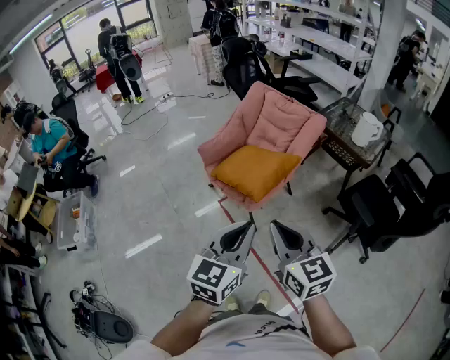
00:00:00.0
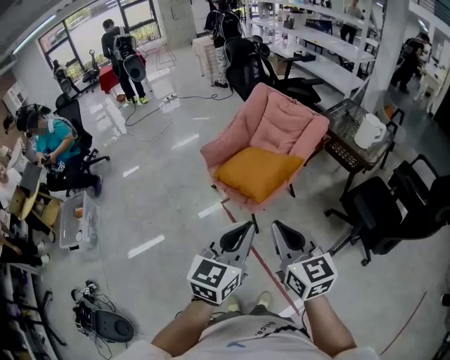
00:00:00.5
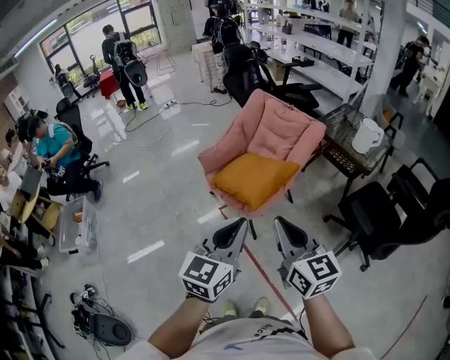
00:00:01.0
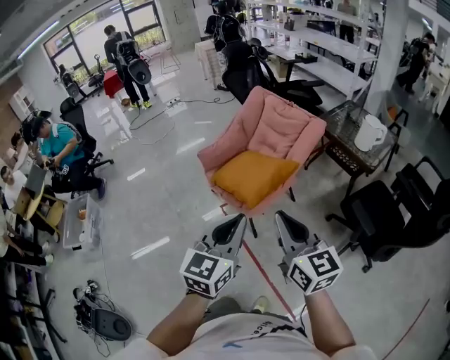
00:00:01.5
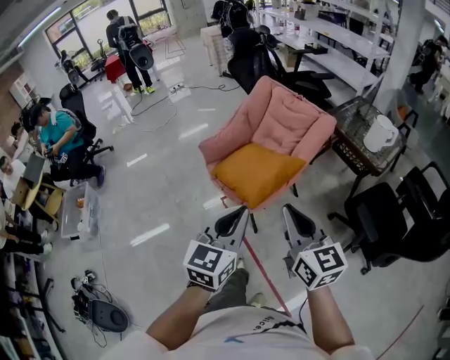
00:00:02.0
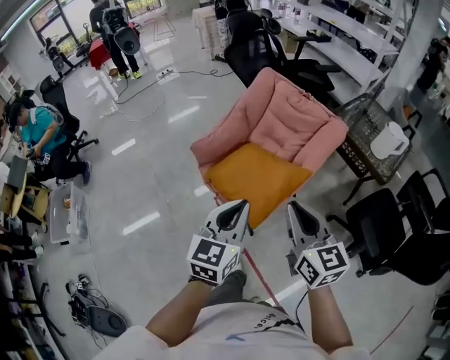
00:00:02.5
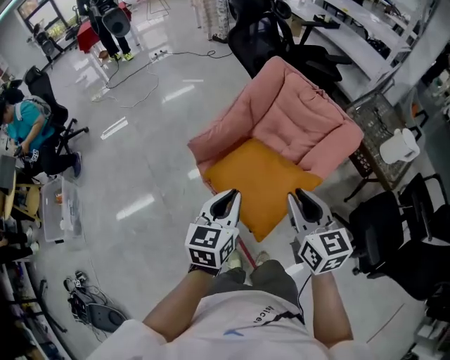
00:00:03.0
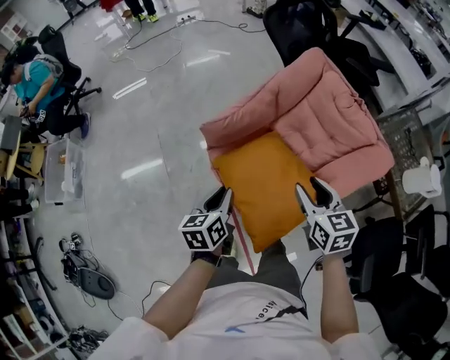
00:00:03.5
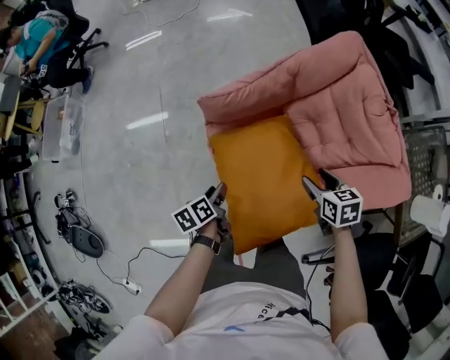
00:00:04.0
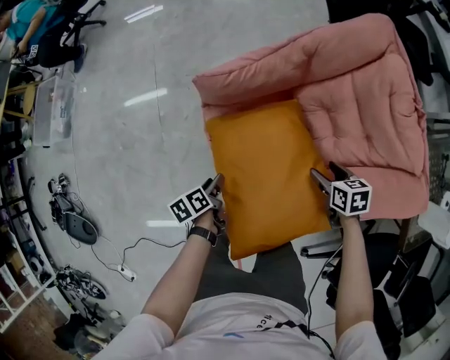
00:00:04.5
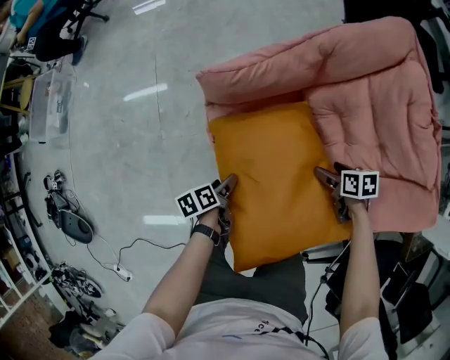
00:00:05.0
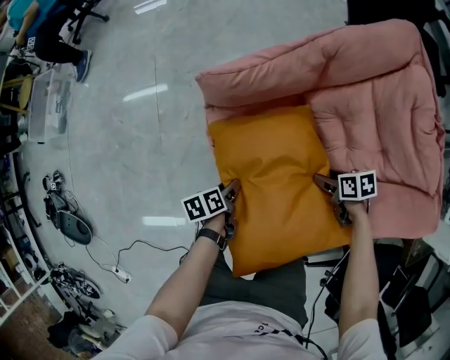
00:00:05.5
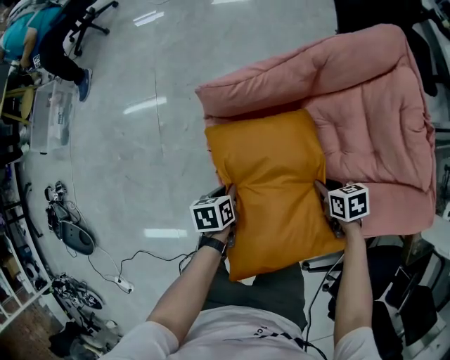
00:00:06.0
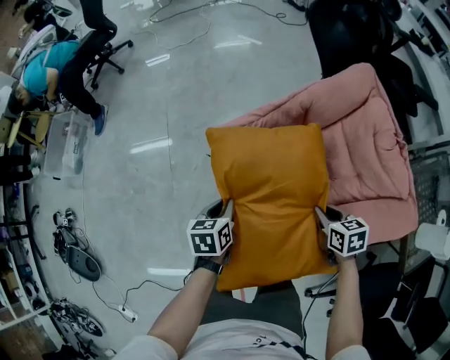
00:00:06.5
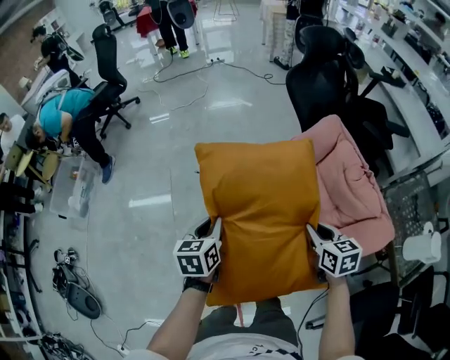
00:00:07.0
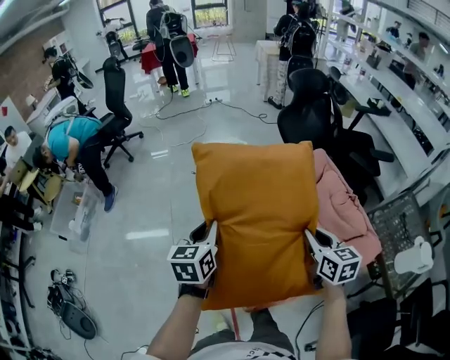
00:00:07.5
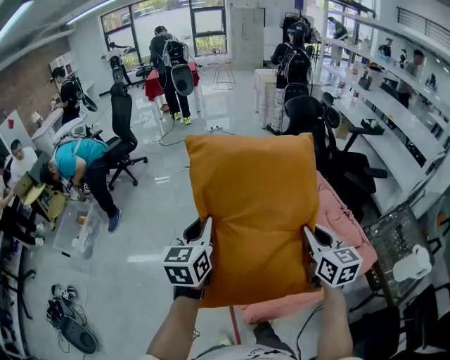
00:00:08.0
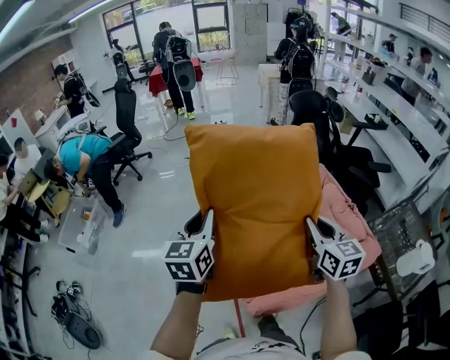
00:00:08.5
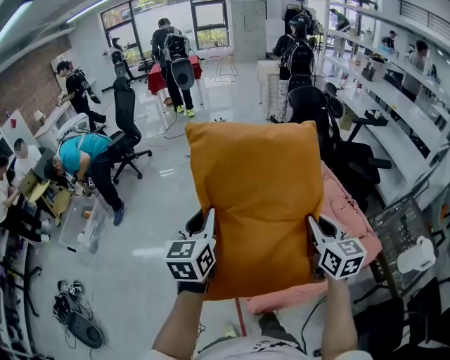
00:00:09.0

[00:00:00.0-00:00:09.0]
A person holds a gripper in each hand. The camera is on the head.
00:00:00.0 to 00:00:02.0: The right gripper goes some 15 cm forward and to the right. Meanwhile the left gripper shifts about 10 cm forward.
00:00:02.0 to 00:00:04.5: The two grippers travel together, roughly 50 cm. The right gripper tips its fingers downward by roughly 60 degrees, and opens, while the left gripper shifts roughly 50 cm downward, rolls counterclockwise, seen from behind, by roughly 80 degrees, and opens its fingers.
00:00:04.5 to 00:00:07.0: Both grippers travel together upward, about 30 cm. The left gripper twists some 40 degrees clockwise, seen from behind, and closes its fingers, while the right gripper changes its angle by some 20 degrees, and closes up.
00:00:07.0 to 00:00:09.0: Both grippers move upward, roughly 25 cm. The right gripper changes its angle by about 30 degrees; the left gripper changes its angle by approximately 30 degrees.

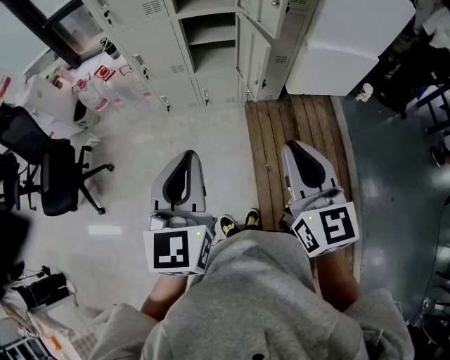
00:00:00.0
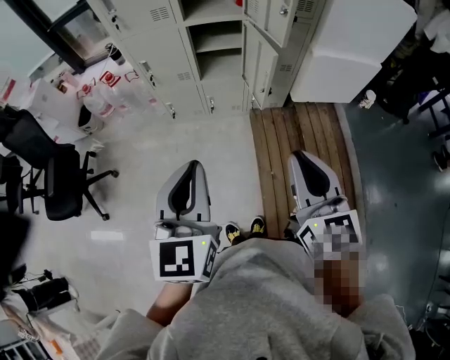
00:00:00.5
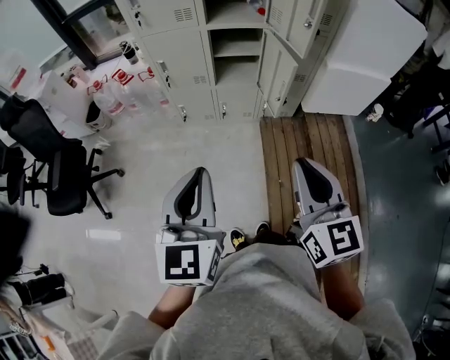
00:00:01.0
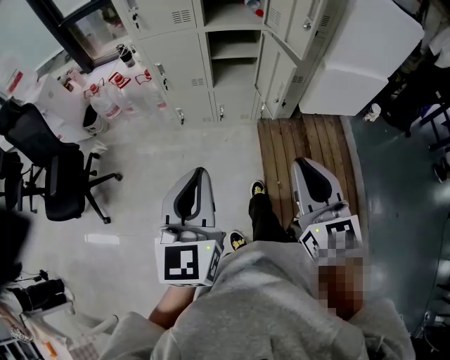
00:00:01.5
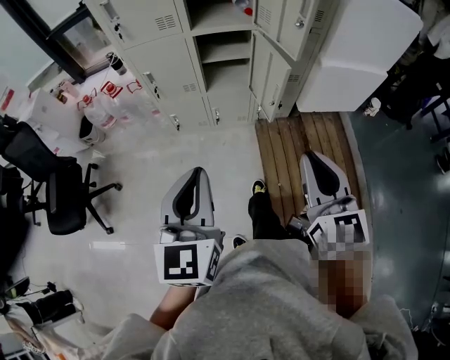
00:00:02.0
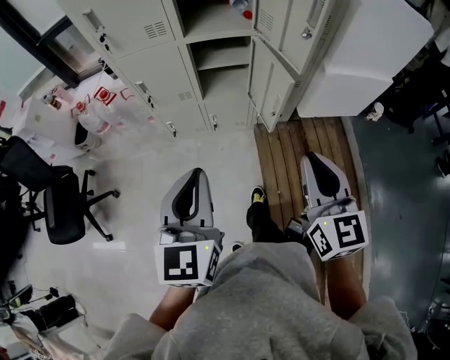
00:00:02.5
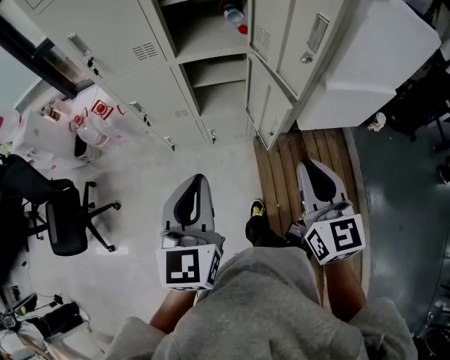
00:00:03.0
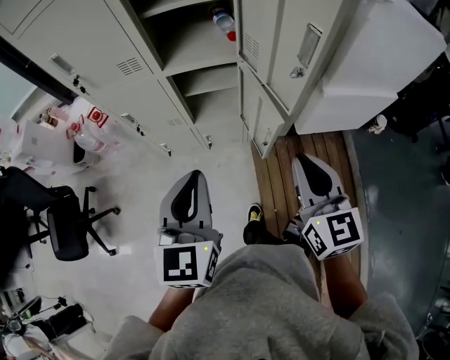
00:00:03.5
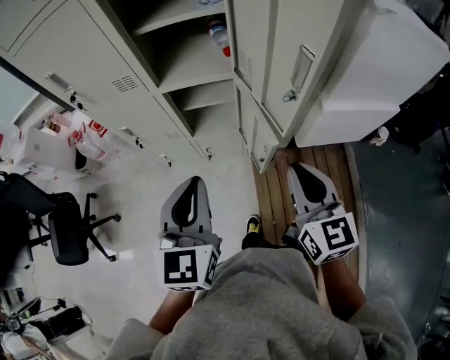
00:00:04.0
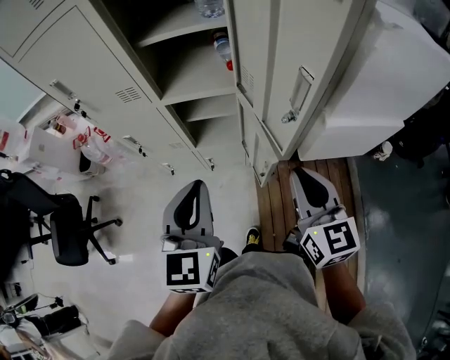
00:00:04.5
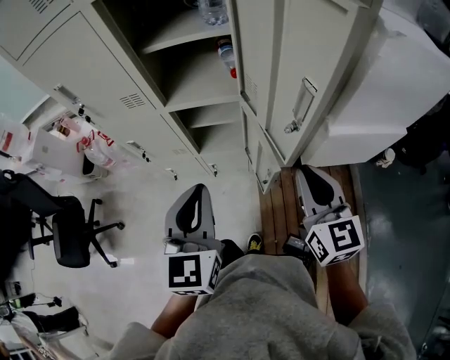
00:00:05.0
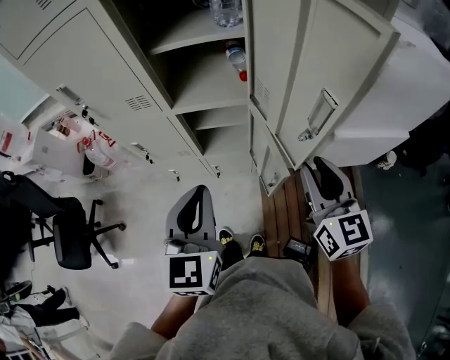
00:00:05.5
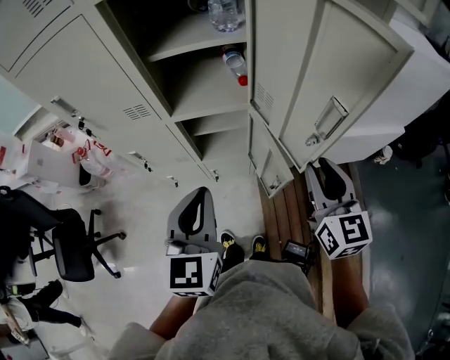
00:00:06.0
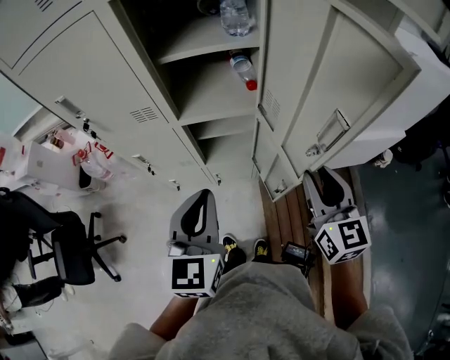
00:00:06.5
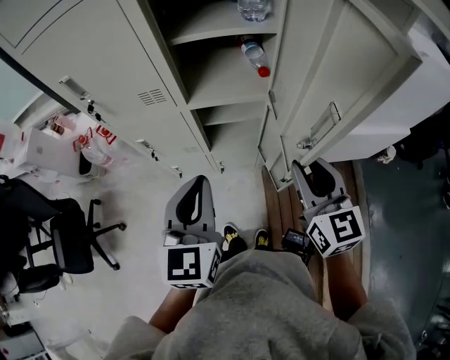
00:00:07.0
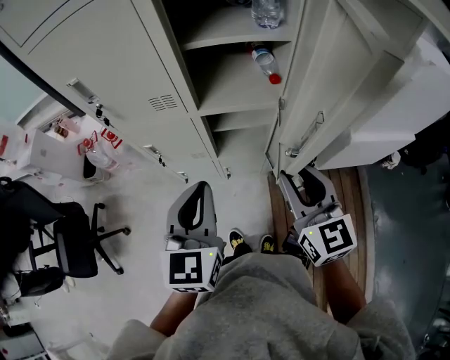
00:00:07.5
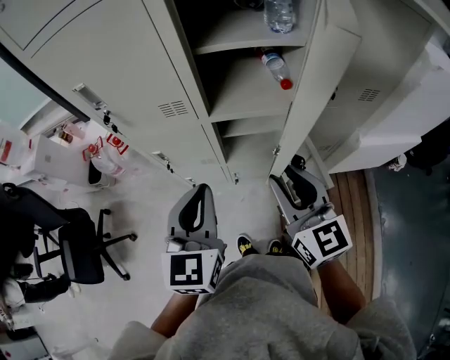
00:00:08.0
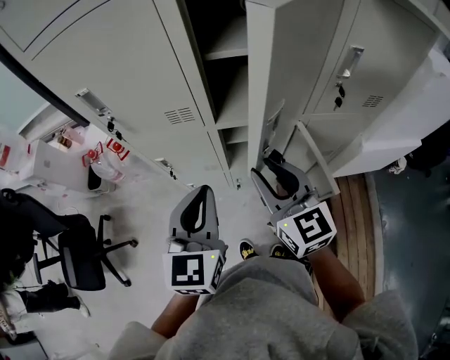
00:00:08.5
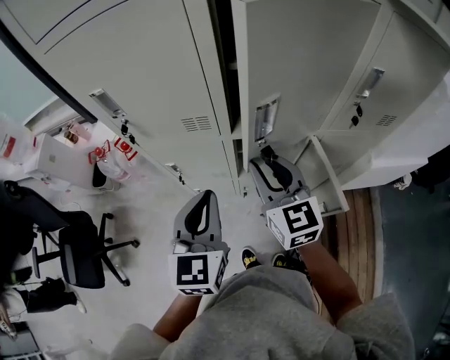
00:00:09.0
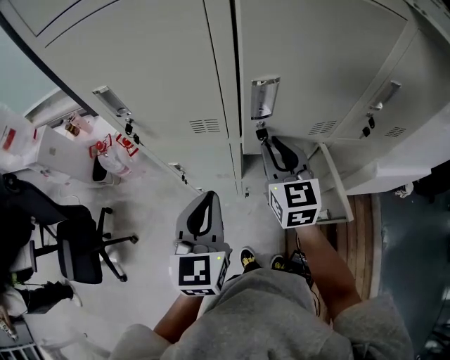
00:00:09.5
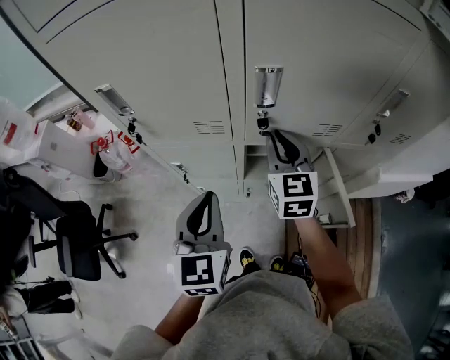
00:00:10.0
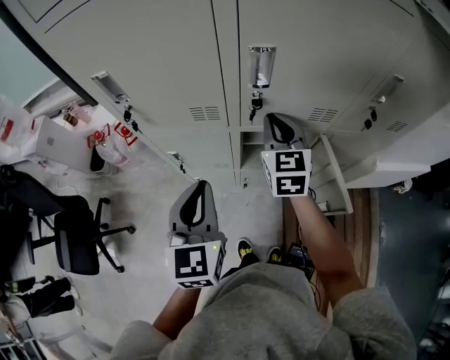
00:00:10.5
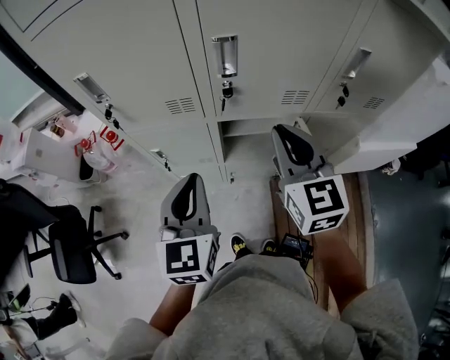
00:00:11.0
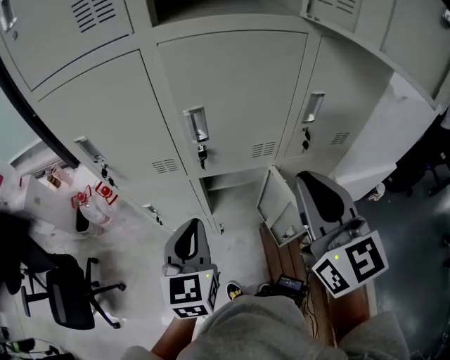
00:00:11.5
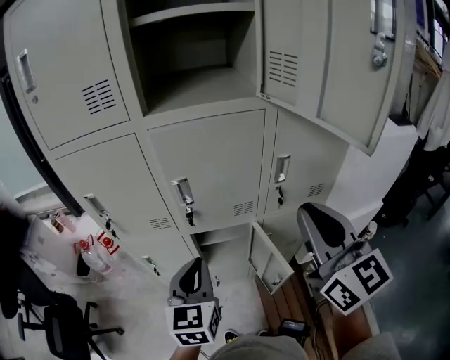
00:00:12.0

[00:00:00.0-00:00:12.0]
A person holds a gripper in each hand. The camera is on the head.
00:00:00.0 to 00:00:02.0: The right gripper shifts about 5 cm forward; the left gripper is displaced forward and to the left by about 10 cm.
00:00:02.0 to 00:00:04.0: Both grippers move forward, approximately 25 cm.
00:00:04.0 to 00:00:06.0: The grippers both shift forward by some 10 cm.
00:00:06.0 to 00:00:08.0: The right gripper moves to the left, about 20 cm; the left gripper is displaced to the left by about 10 cm.
00:00:08.0 to 00:00:10.0: The left gripper goes about 10 cm forward and to the left, while the right gripper heads forward, covering about 20 cm.
00:00:10.0 to 00:00:12.0: The right gripper moves upward, backward and to the right, approximately 40 cm, and turns by approximately 20 degrees. Meanwhile the left gripper heads to the right and upward, covering about 15 cm.

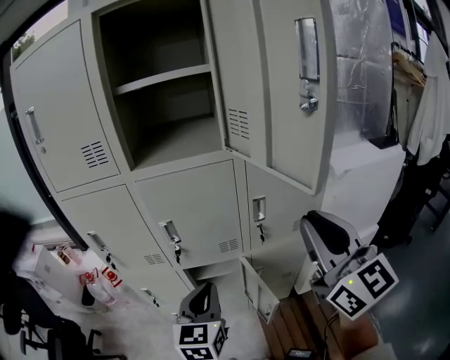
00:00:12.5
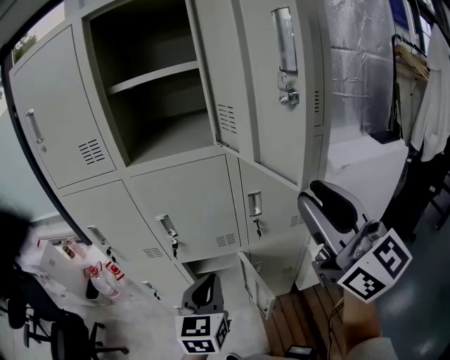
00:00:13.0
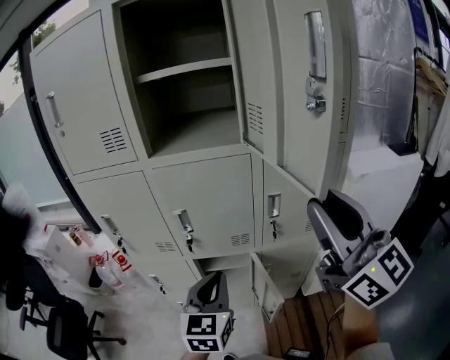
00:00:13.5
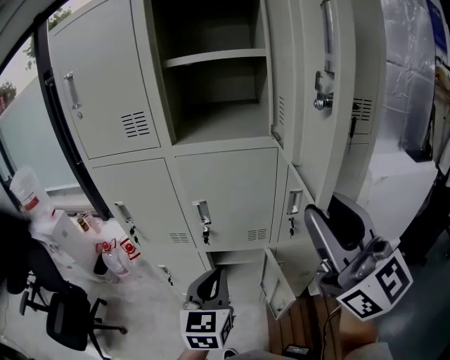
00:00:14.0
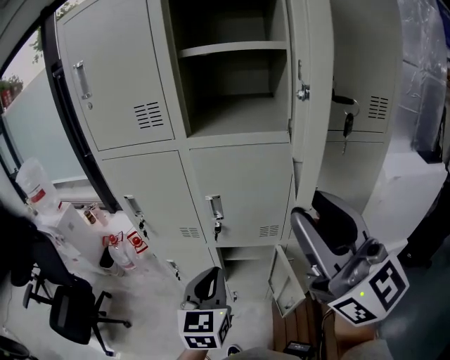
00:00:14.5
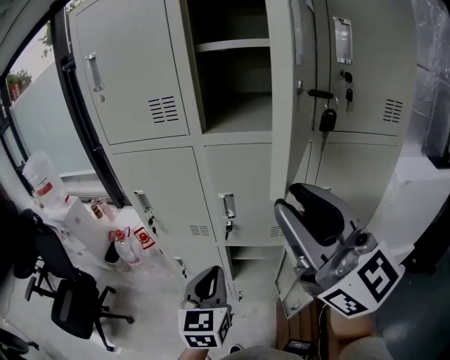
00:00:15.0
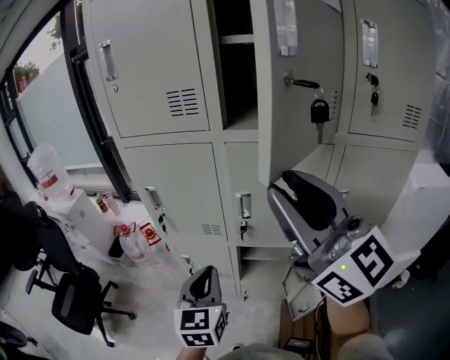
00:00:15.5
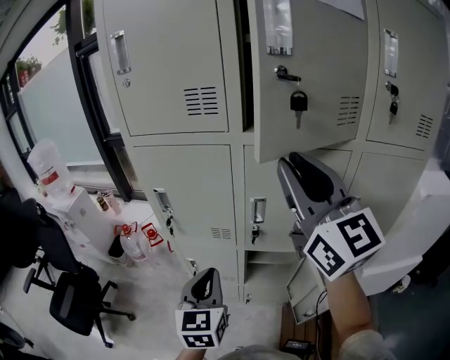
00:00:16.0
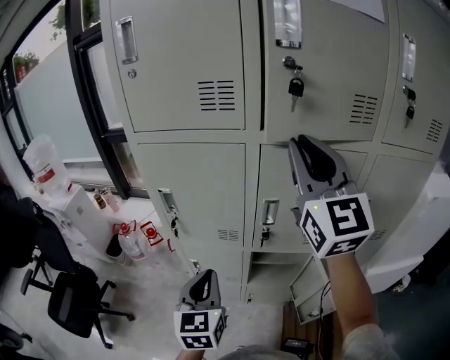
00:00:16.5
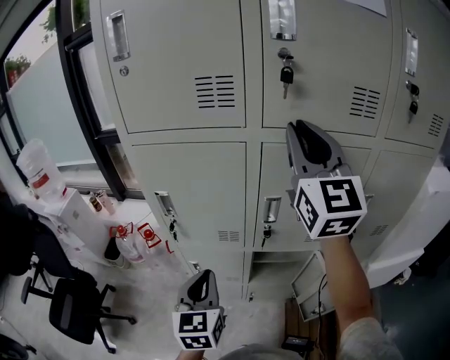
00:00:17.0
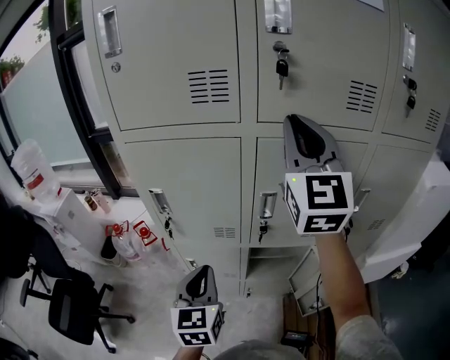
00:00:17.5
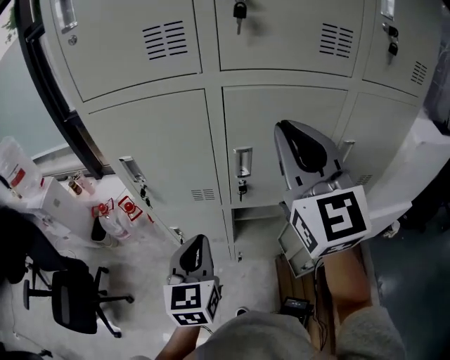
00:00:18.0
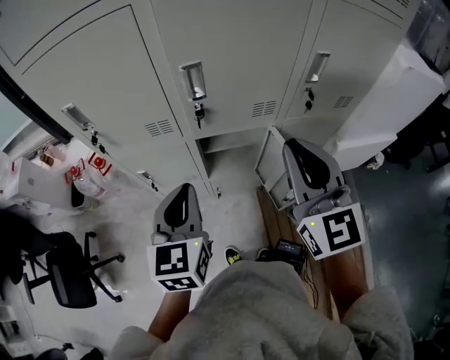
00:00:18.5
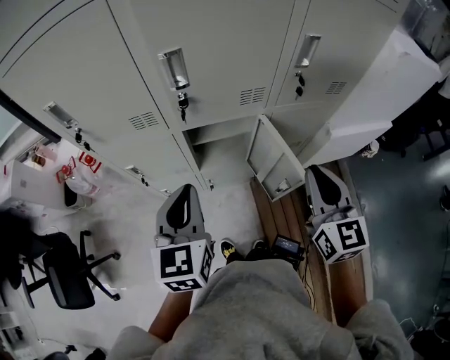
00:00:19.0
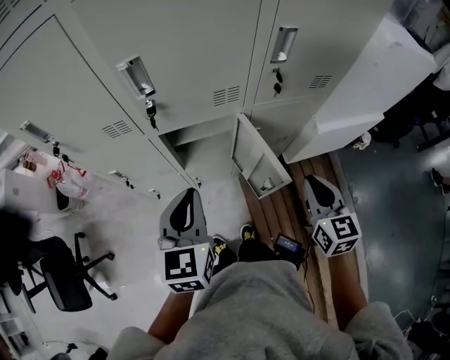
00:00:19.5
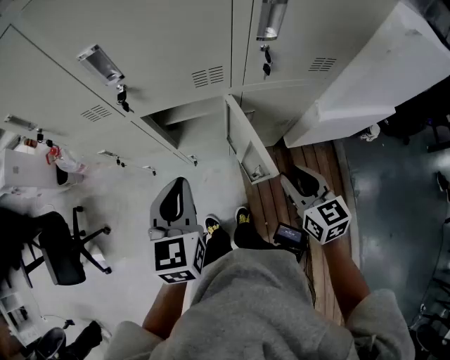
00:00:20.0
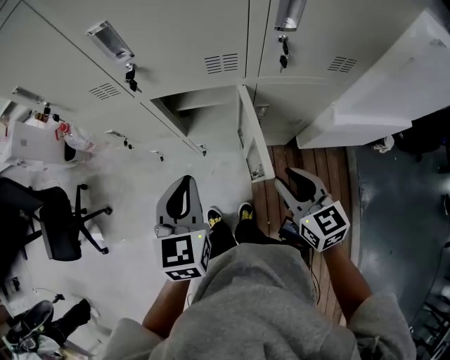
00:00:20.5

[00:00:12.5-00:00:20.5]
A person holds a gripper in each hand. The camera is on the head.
00:00:12.5 to 00:00:14.5: The right gripper is displaced to the left by roughly 15 cm, changes its angle by about 20 degrees, and opens up. Meanwhile the left gripper goes some 10 cm to the left.
00:00:14.5 to 00:00:16.5: The right gripper is displaced forward by some 20 cm, and rotates roughly 20 degrees. The left gripper is displaced to the left and forward by roughly 15 cm.
00:00:16.5 to 00:00:18.5: The left gripper goes approximately 10 cm to the right. Meanwhile the right gripper moves downward and backward, some 30 cm, and changes its angle by approximately 20 degrees.
00:00:18.5 to 00:00:20.5: The right gripper is displaced downward and to the right by about 30 cm, and turns by some 40 degrees; the left gripper moves to the right and downward, roughly 15 cm.
